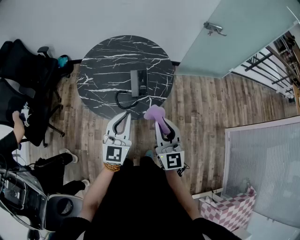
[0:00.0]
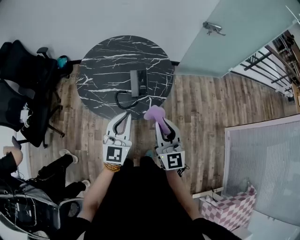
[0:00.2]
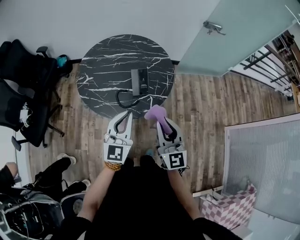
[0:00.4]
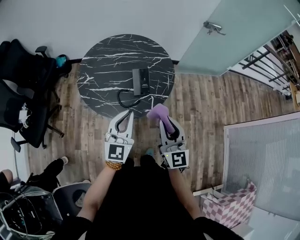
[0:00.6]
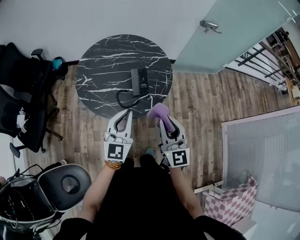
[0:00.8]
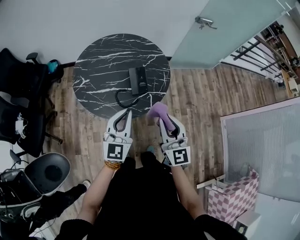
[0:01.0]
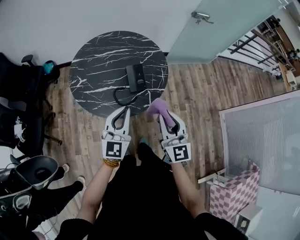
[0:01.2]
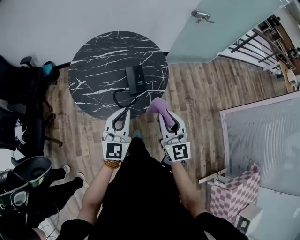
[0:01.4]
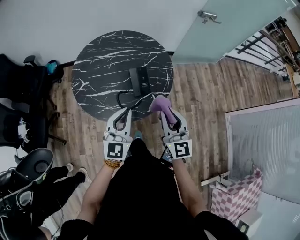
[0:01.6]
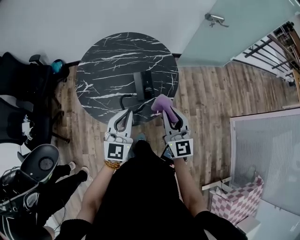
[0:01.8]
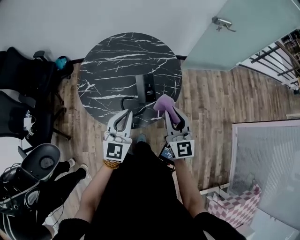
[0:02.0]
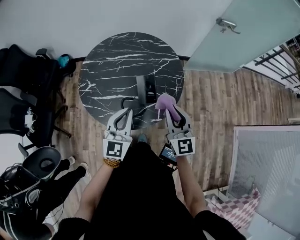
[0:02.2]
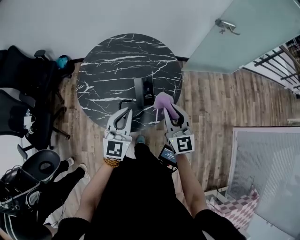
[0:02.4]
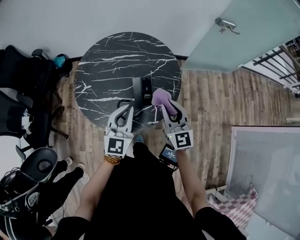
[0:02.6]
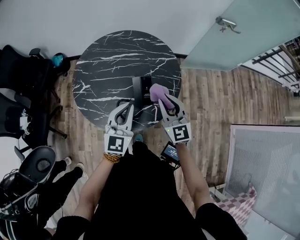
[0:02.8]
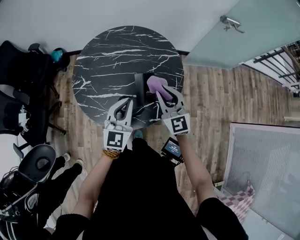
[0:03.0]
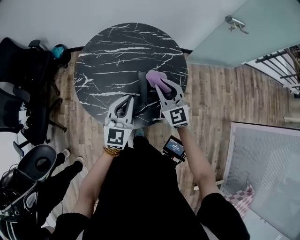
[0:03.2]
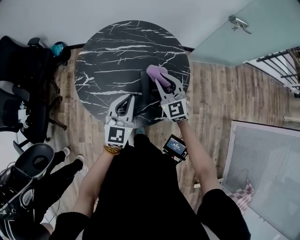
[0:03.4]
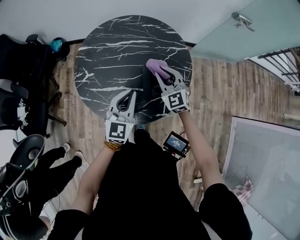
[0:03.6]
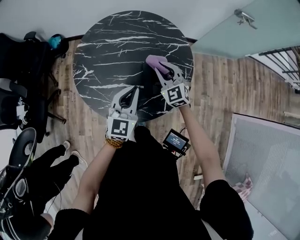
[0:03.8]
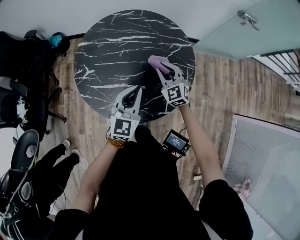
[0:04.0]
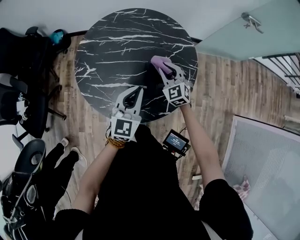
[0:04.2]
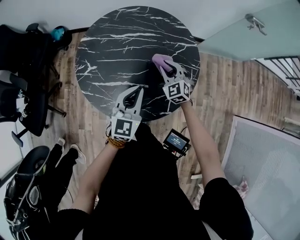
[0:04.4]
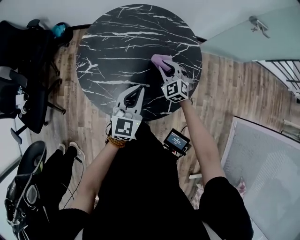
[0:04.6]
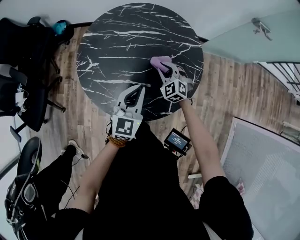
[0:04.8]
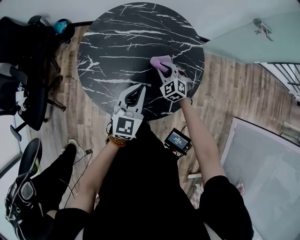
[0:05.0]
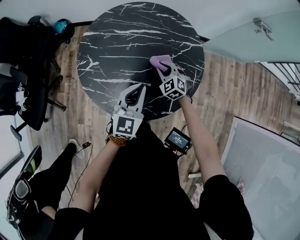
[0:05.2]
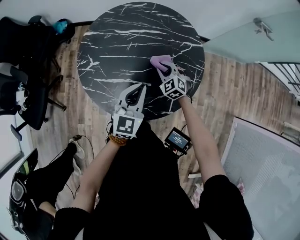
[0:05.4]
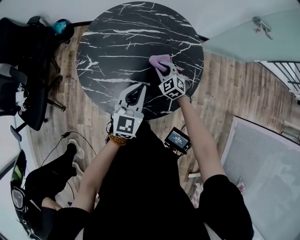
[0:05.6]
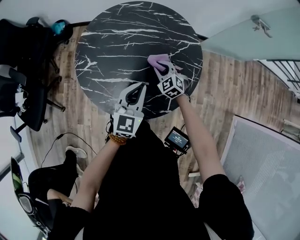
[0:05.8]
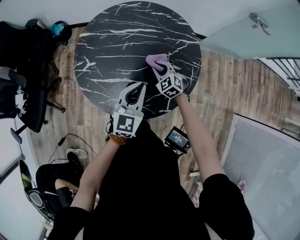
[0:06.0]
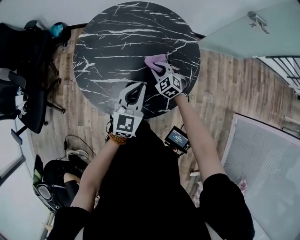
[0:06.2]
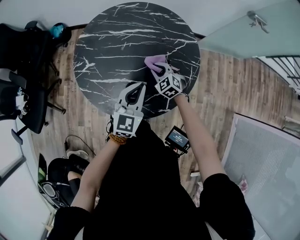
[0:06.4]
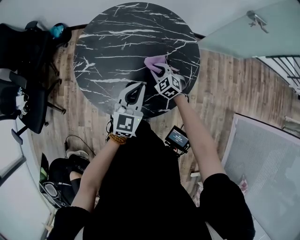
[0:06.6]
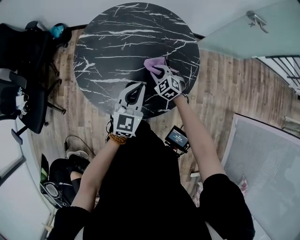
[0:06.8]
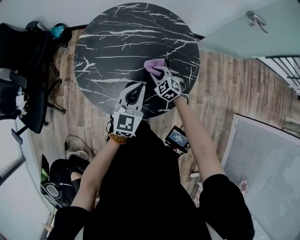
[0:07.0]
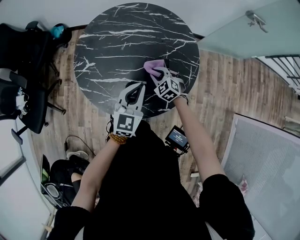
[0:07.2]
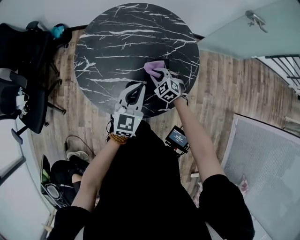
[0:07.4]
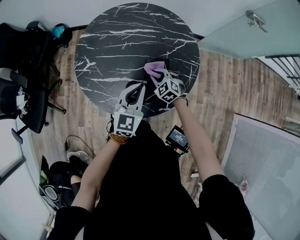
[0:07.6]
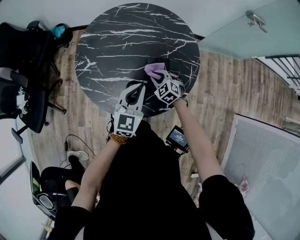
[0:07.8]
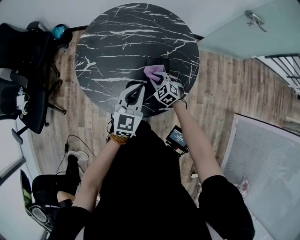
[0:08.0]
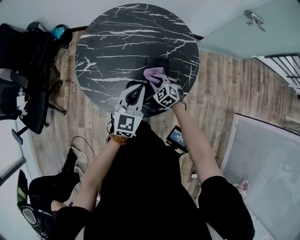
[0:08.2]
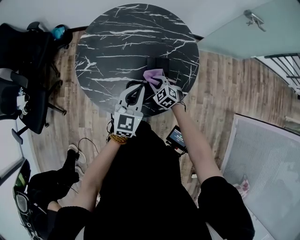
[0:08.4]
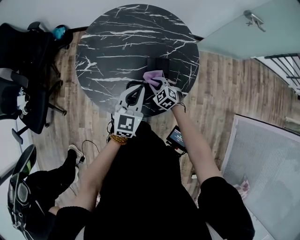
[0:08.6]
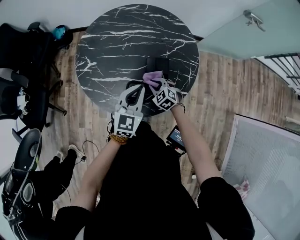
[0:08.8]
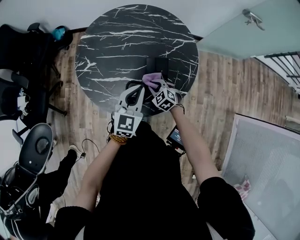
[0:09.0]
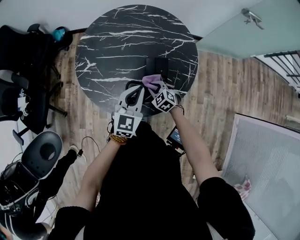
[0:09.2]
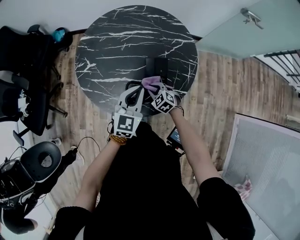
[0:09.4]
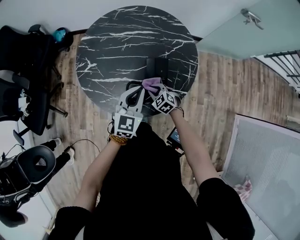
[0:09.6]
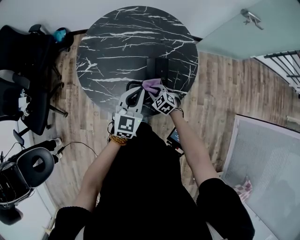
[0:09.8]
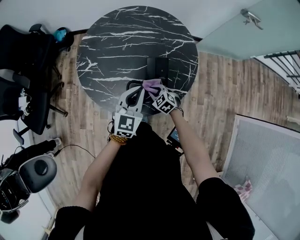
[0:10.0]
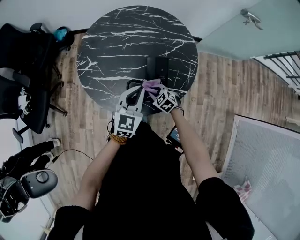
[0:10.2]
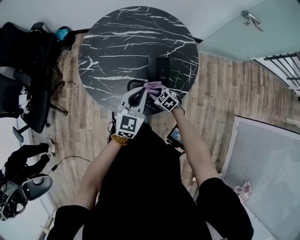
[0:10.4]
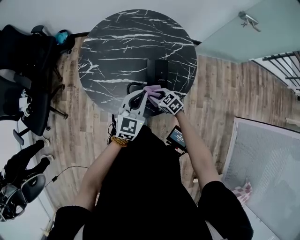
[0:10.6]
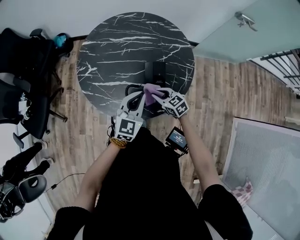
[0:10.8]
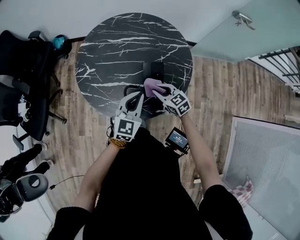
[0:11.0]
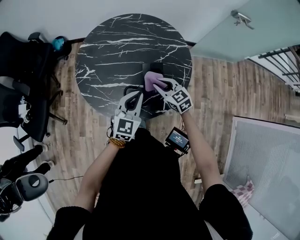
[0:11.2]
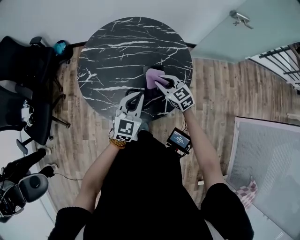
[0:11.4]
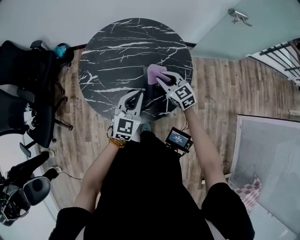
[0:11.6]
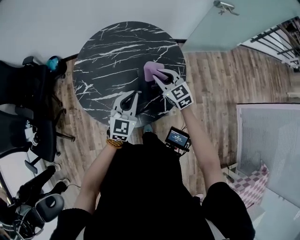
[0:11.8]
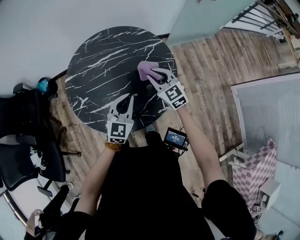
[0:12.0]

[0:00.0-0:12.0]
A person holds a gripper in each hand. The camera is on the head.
0:00.0 to 0:01.6: The left gripper changes place by about 5 cm. The right gripper shifts roughly 5 cm forward.
0:01.6 to 0:03.0: The right gripper travels forward by approximately 20 cm, and turns by roughly 20 degrees, while the left gripper moves forward, some 10 cm.
0:03.0 to 0:04.4: The left gripper ends up approximately 5 cm from where it was; the right gripper travels downward and forward by some 20 cm, and swivels about 30 degrees.
0:04.4 to 0:06.0: The right gripper heads downward, covering approximately 10 cm.
0:06.0 to 0:07.6: The right gripper changes place by some 5 cm.
0:07.6 to 0:09.0: The right gripper shifts approximately 5 cm backward.
0:09.0 to 0:10.4: The right gripper moves roughly 5 cm.
0:10.4 to 0:12.0: The right gripper goes approximately 25 cm upward, and tips its fingers upward by about 30 degrees.

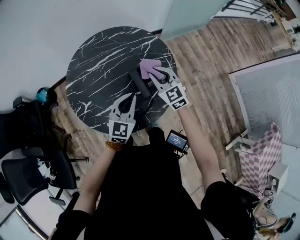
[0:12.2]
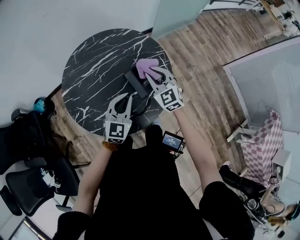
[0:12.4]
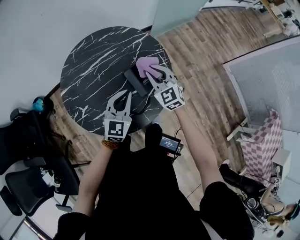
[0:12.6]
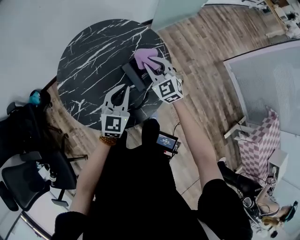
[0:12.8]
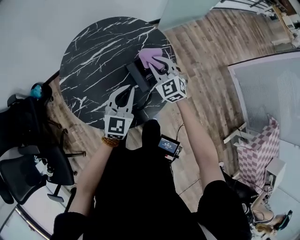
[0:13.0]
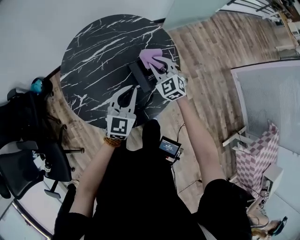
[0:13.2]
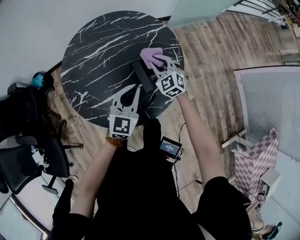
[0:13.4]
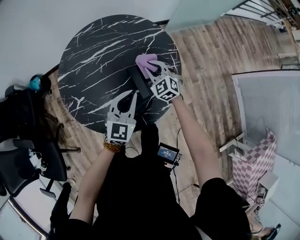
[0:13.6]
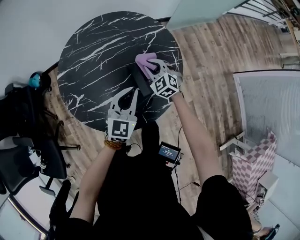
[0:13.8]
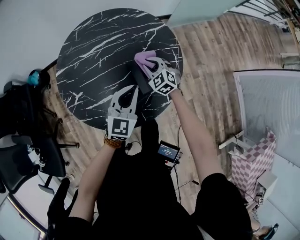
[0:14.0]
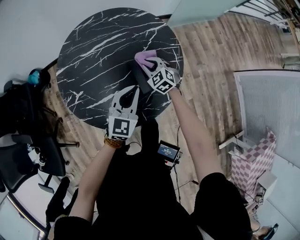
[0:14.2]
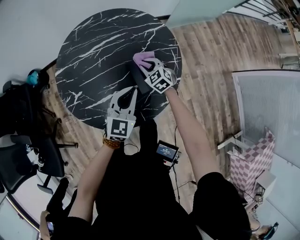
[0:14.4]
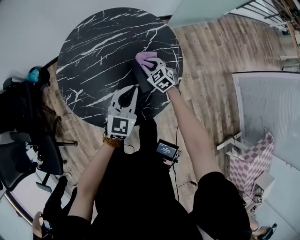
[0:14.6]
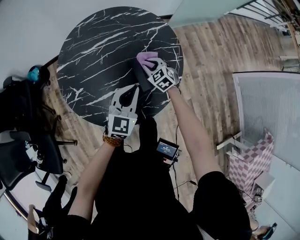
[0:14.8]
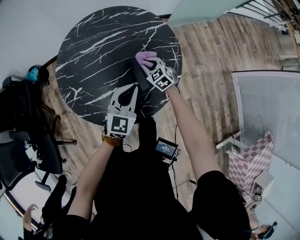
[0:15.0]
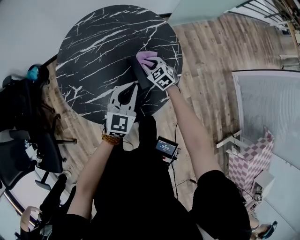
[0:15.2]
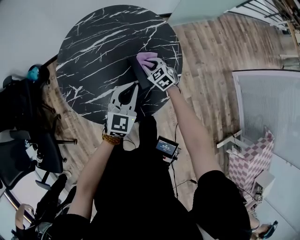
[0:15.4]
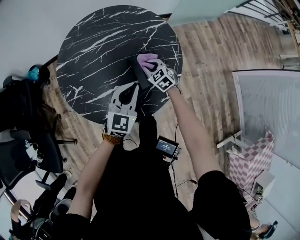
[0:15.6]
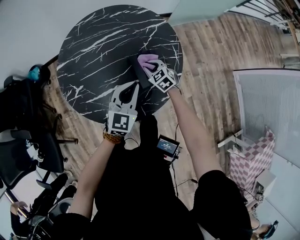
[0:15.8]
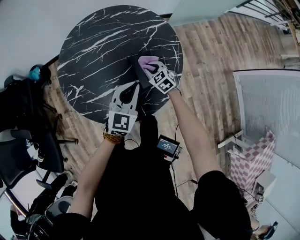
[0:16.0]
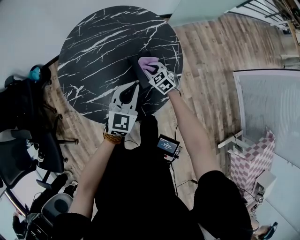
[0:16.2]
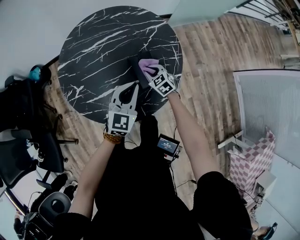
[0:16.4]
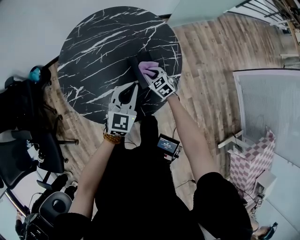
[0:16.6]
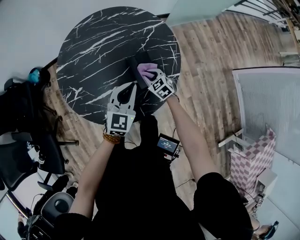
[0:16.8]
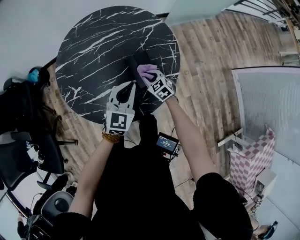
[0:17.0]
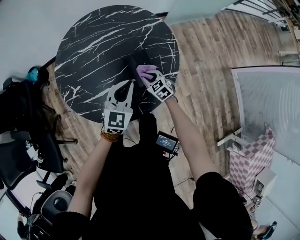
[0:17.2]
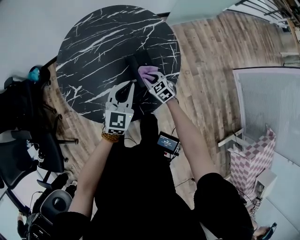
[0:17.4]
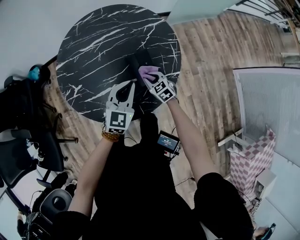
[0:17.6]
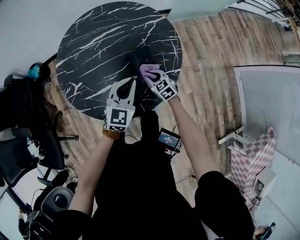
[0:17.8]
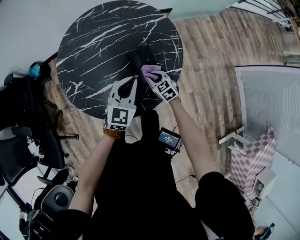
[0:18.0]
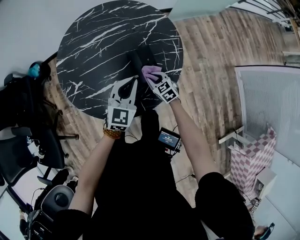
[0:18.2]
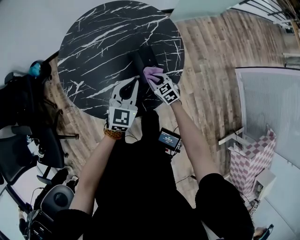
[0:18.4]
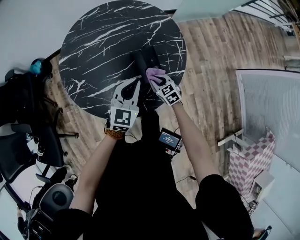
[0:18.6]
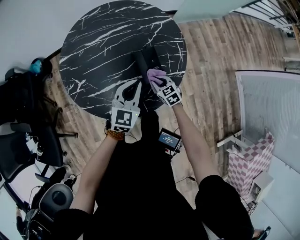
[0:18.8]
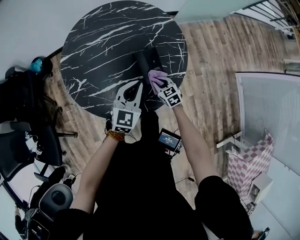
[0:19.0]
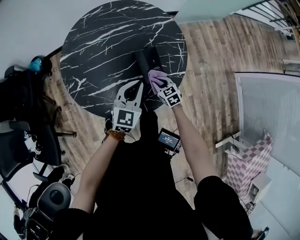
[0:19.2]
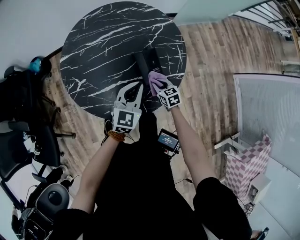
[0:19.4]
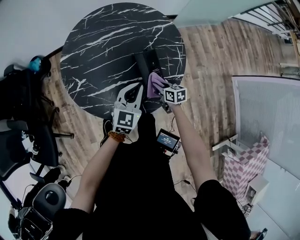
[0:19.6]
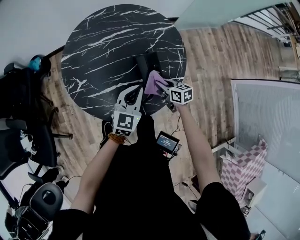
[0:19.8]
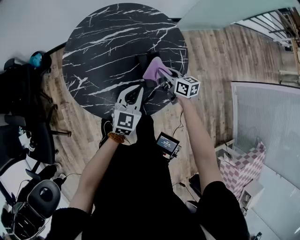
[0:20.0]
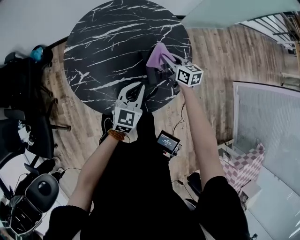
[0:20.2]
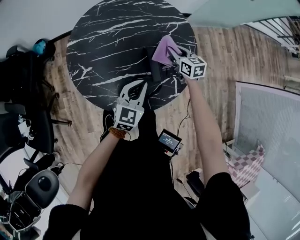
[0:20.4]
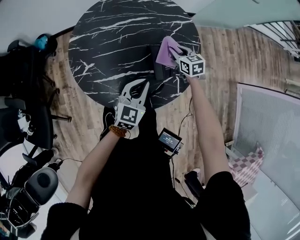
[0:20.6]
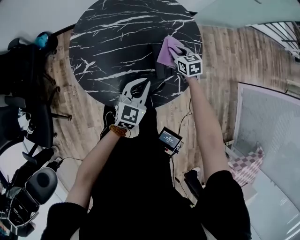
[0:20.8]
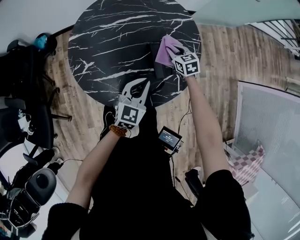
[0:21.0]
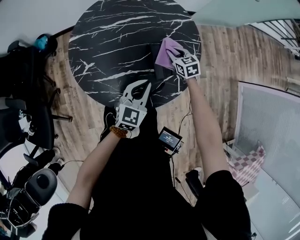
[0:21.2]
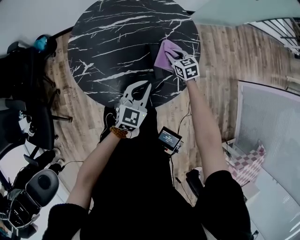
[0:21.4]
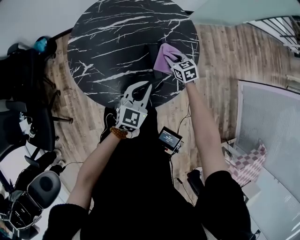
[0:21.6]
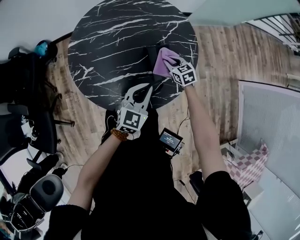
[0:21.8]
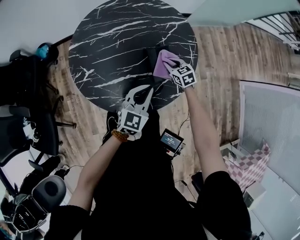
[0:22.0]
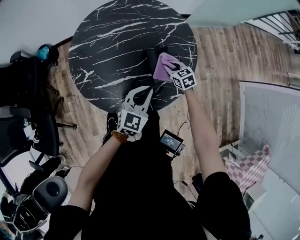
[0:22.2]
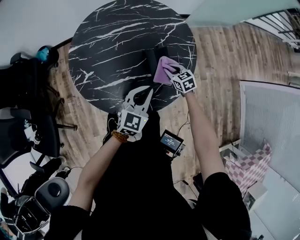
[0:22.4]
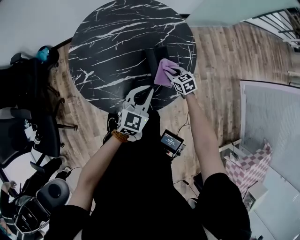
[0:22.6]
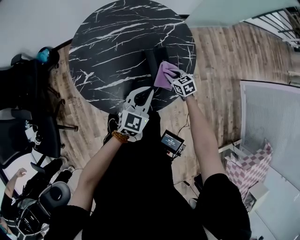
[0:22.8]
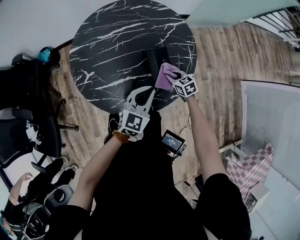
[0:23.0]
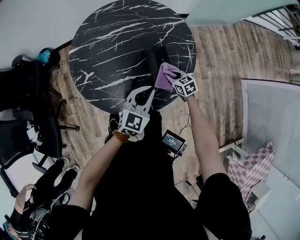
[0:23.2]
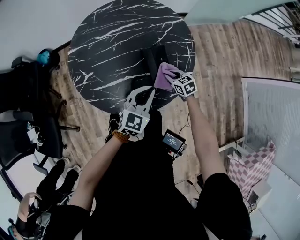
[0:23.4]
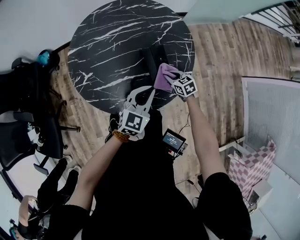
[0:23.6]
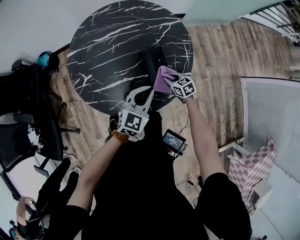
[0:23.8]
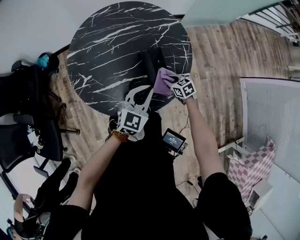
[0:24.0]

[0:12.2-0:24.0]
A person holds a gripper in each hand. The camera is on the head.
0:12.2 to 0:13.6: The right gripper shifts roughly 15 cm downward and forward.
0:13.6 to 0:15.2: The right gripper shifts some 10 cm downward.
0:15.2 to 0:16.6: The right gripper travels backward by about 5 cm.
0:16.6 to 0:18.2: The right gripper is displaced backward by roughly 5 cm.
0:18.2 to 0:19.6: The right gripper swivels roughly 40 degrees.
0:19.6 to 0:21.0: The right gripper is displaced forward by roughly 15 cm, and turns by about 30 degrees.
0:21.0 to 0:22.6: The right gripper heads backward and downward, covering some 10 cm.
0:22.6 to 0:24.0: The right gripper changes place by some 5 cm.
